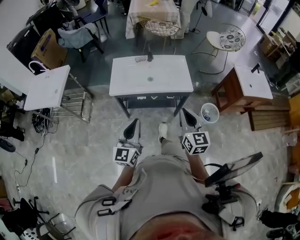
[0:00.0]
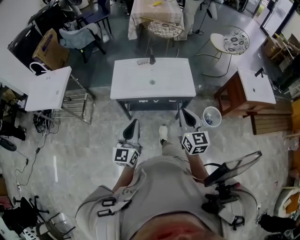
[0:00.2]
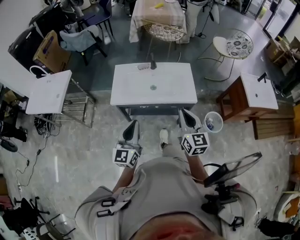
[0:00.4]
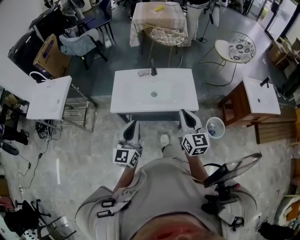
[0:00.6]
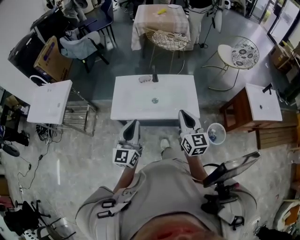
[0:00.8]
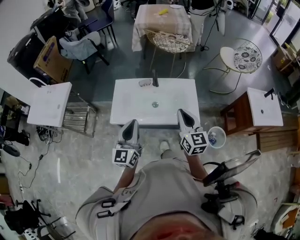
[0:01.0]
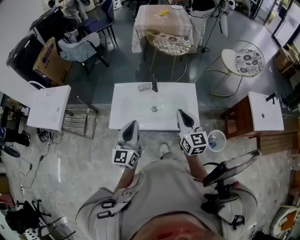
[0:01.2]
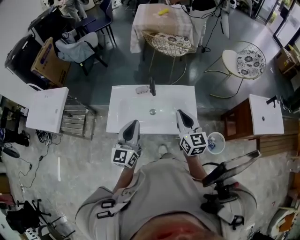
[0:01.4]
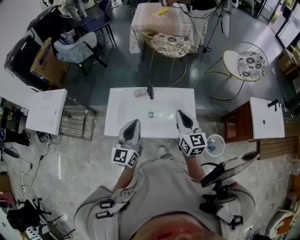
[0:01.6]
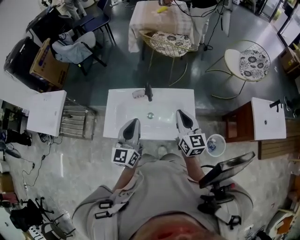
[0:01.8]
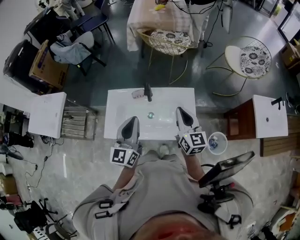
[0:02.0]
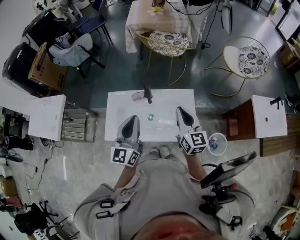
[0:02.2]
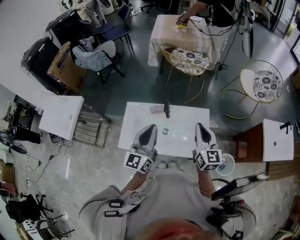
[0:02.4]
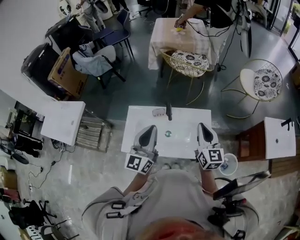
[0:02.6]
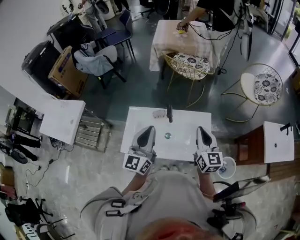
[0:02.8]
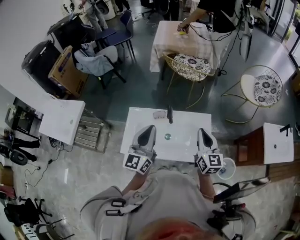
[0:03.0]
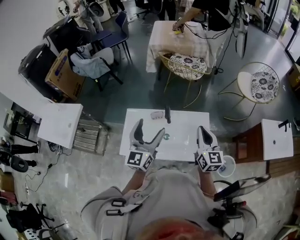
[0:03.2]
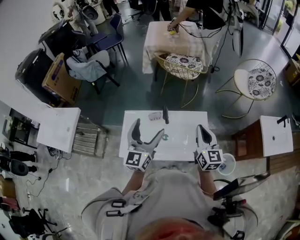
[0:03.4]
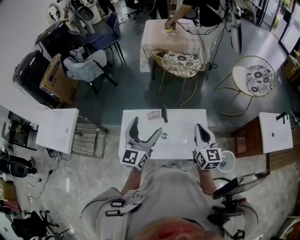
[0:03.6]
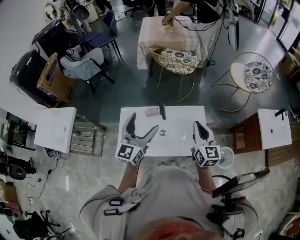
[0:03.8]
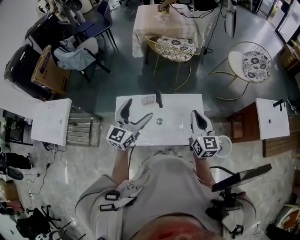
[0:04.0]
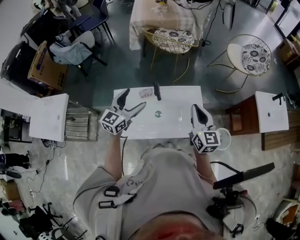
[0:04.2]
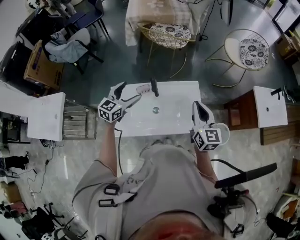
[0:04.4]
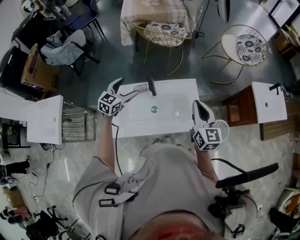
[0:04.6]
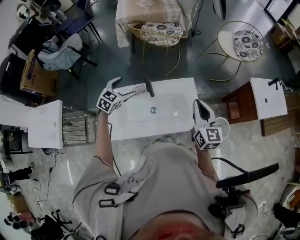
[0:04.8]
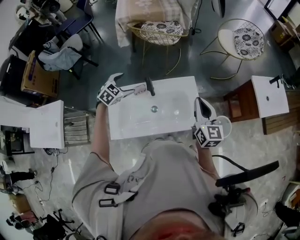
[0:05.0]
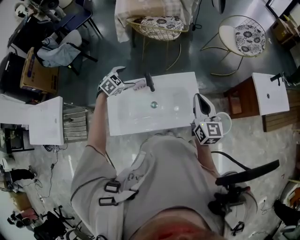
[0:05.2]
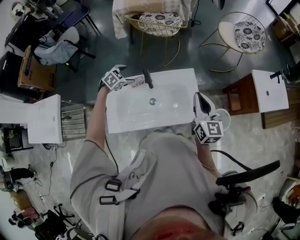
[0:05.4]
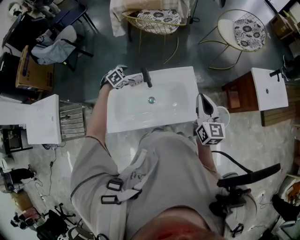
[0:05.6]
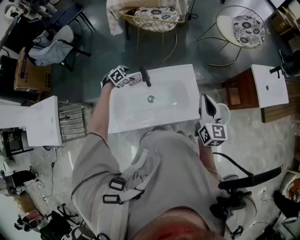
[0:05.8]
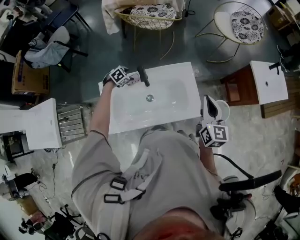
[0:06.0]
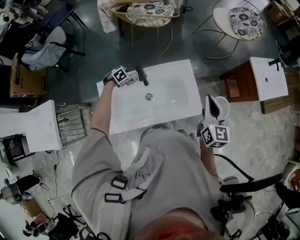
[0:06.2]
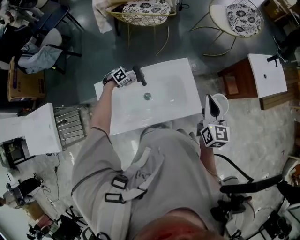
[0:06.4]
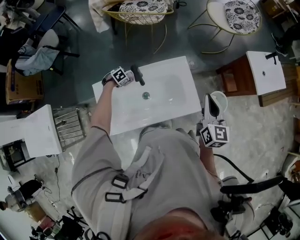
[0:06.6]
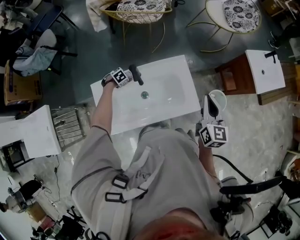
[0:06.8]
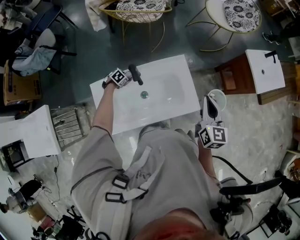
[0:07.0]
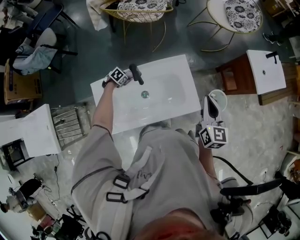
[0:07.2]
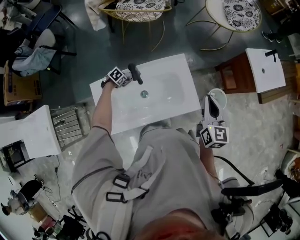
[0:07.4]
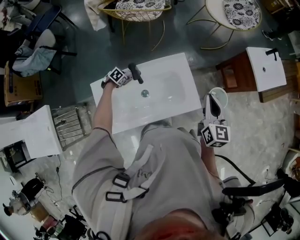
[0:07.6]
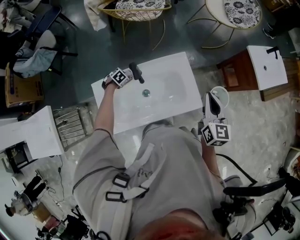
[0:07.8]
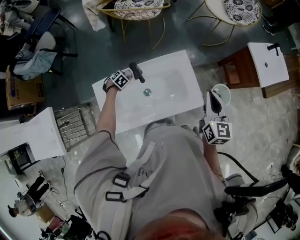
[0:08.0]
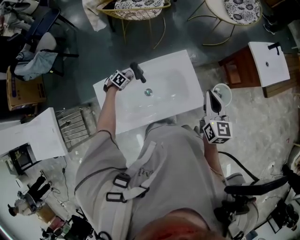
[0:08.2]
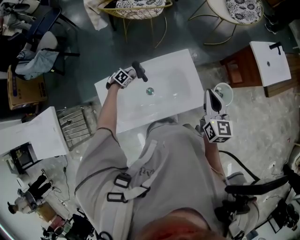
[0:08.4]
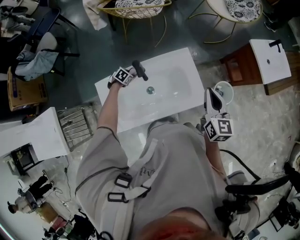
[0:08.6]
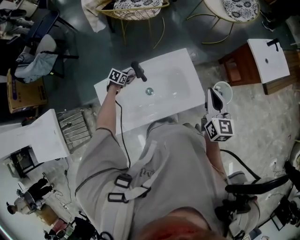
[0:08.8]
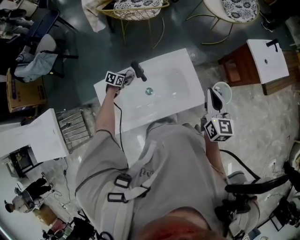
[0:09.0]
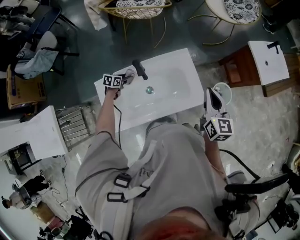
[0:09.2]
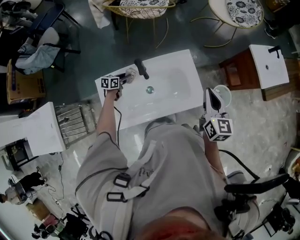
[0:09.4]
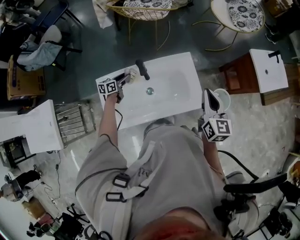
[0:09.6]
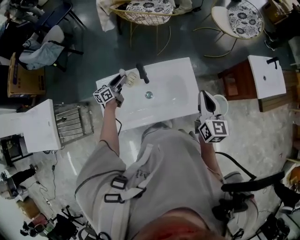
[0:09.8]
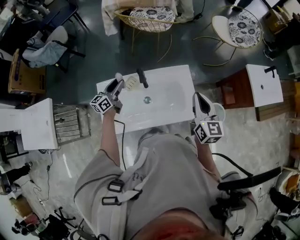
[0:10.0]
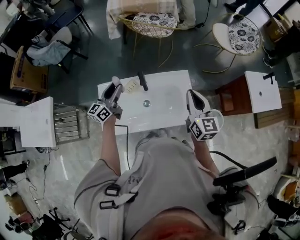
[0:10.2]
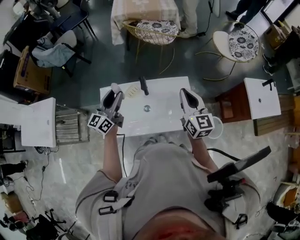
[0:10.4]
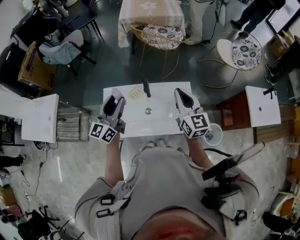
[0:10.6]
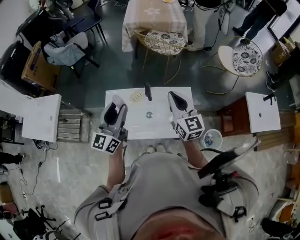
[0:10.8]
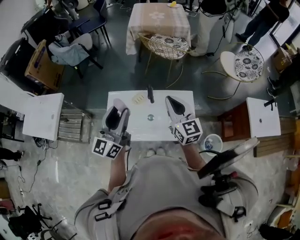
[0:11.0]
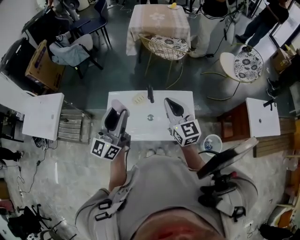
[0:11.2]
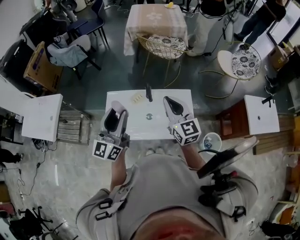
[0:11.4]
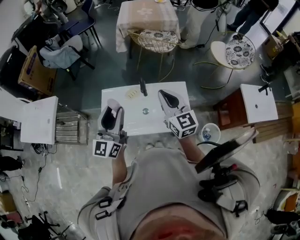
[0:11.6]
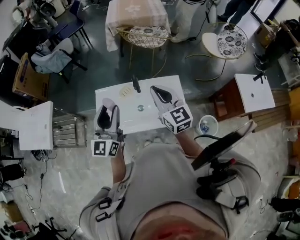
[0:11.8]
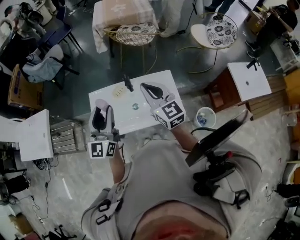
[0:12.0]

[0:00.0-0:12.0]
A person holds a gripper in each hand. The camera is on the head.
0:00.0 to 0:01.6: Both grippers move forward, approximately 35 cm.
0:01.6 to 0:03.0: The right gripper shifts by approximately 5 cm. Meanwhile the left gripper is displaced forward and upward by roughly 10 cm.
0:03.0 to 0:04.4: The left gripper is displaced downward and forward by approximately 20 cm, swivels roughly 40 degrees, and opens up.
0:04.4 to 0:06.0: The right gripper moves to the right, roughly 5 cm. Meanwhile the left gripper heads downward and forward, covering roughly 30 cm, and tilts its fingers about 50 degrees downward.
0:06.0 to 0:07.6: The left gripper shifts approximately 10 cm downward.
0:07.6 to 0:09.0: The left gripper turns by some 30 degrees.
0:09.0 to 0:10.4: The right gripper shifts by approximately 15 cm, and changes its angle by roughly 30 degrees; the left gripper shifts about 40 cm upward, and angles its fingers upward, by approximately 60 degrees.
0:10.4 to 0:12.0: The right gripper shifts approximately 10 cm to the left. Meanwhile the left gripper travels backward and upward by roughly 15 cm, and changes its angle by approximately 20 degrees.

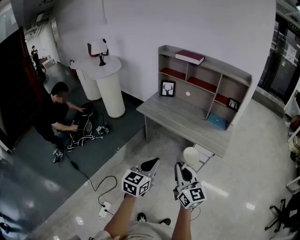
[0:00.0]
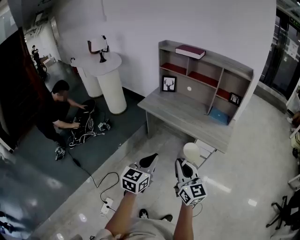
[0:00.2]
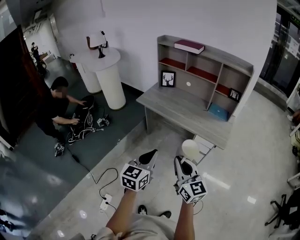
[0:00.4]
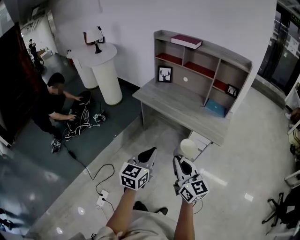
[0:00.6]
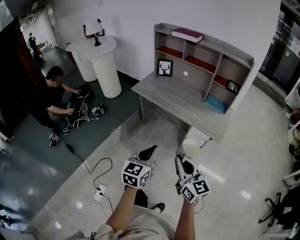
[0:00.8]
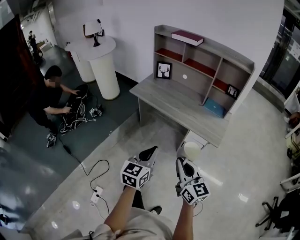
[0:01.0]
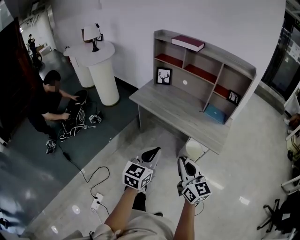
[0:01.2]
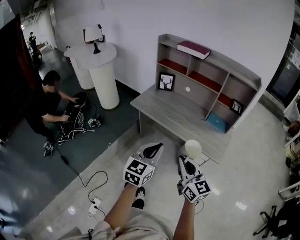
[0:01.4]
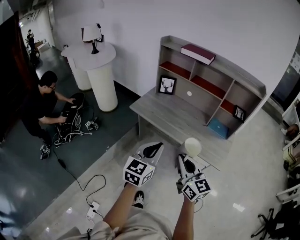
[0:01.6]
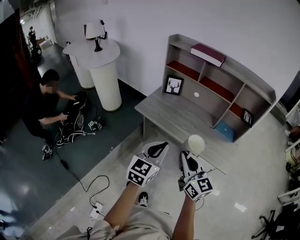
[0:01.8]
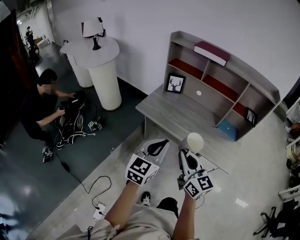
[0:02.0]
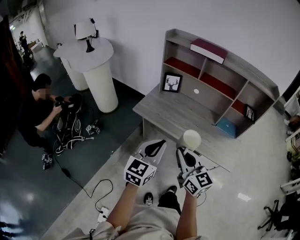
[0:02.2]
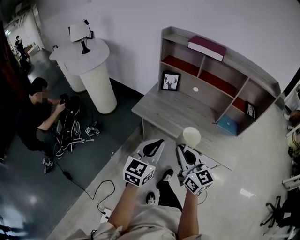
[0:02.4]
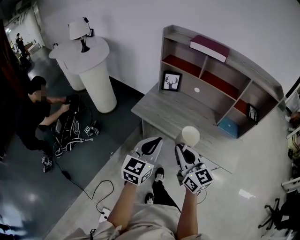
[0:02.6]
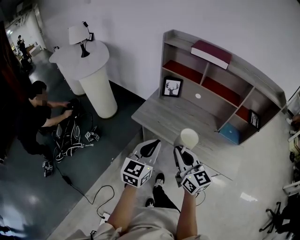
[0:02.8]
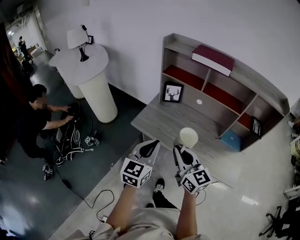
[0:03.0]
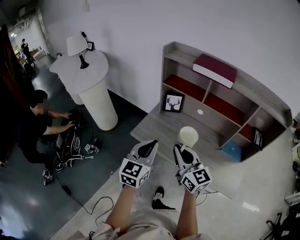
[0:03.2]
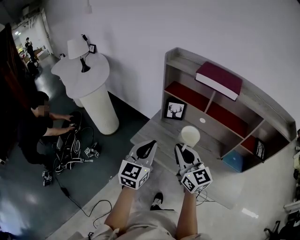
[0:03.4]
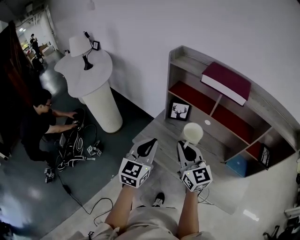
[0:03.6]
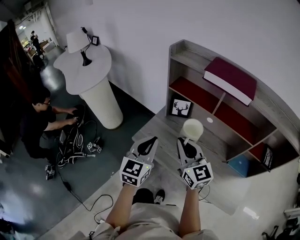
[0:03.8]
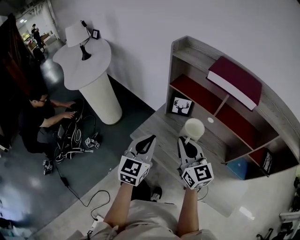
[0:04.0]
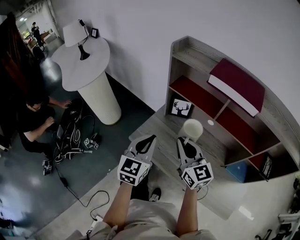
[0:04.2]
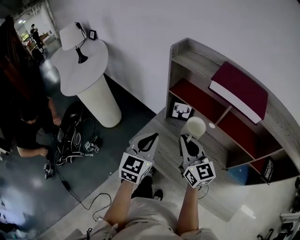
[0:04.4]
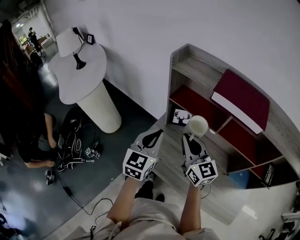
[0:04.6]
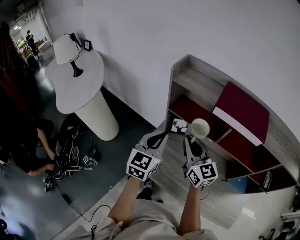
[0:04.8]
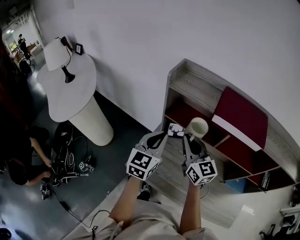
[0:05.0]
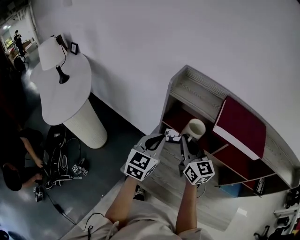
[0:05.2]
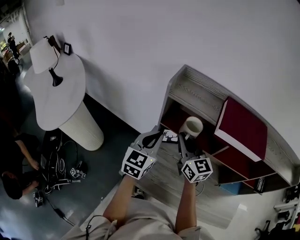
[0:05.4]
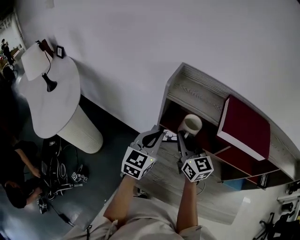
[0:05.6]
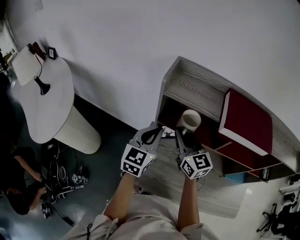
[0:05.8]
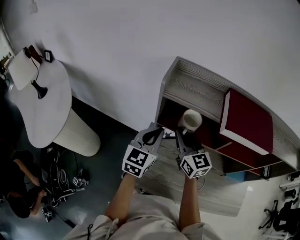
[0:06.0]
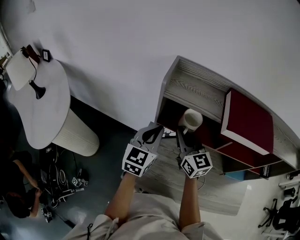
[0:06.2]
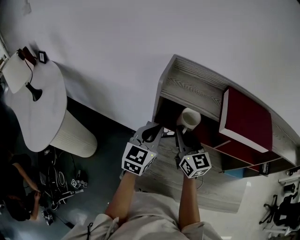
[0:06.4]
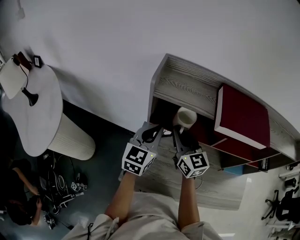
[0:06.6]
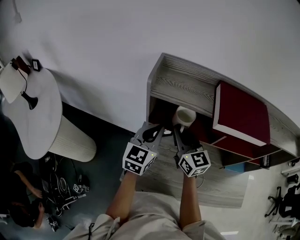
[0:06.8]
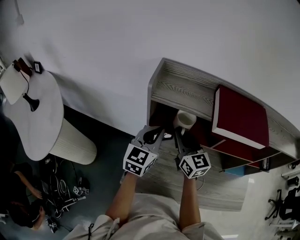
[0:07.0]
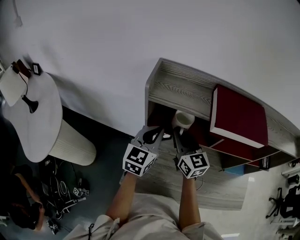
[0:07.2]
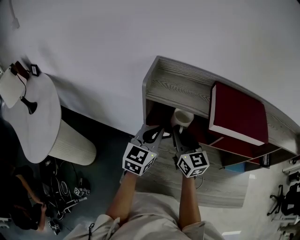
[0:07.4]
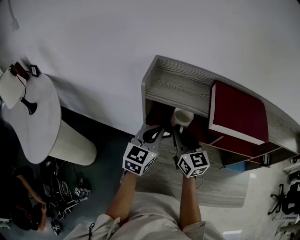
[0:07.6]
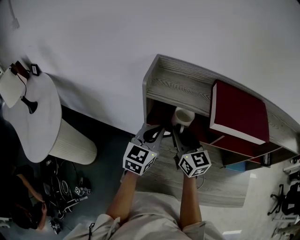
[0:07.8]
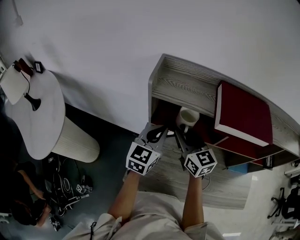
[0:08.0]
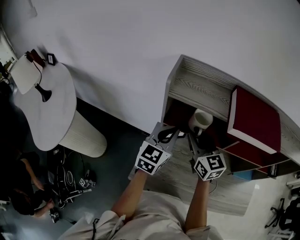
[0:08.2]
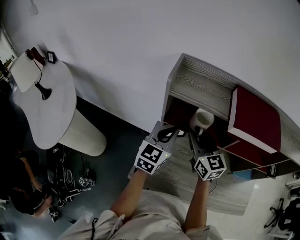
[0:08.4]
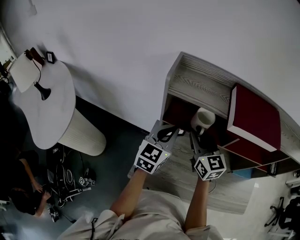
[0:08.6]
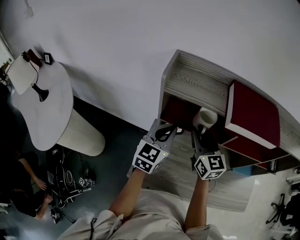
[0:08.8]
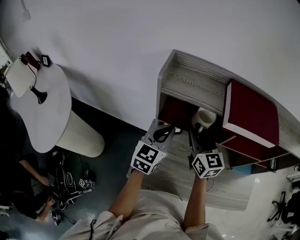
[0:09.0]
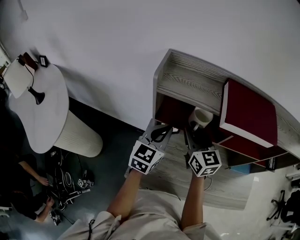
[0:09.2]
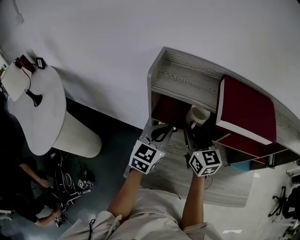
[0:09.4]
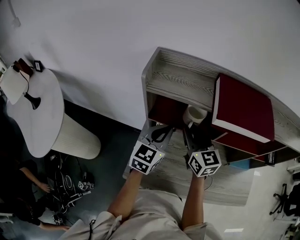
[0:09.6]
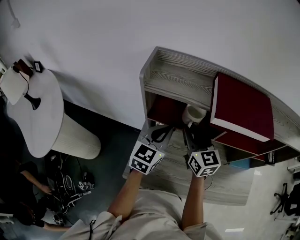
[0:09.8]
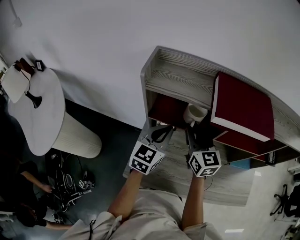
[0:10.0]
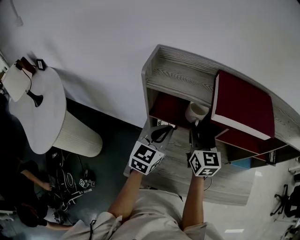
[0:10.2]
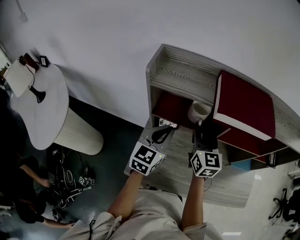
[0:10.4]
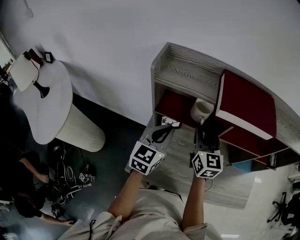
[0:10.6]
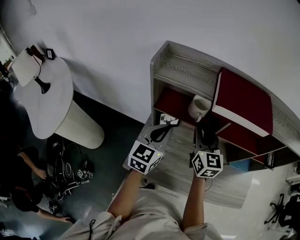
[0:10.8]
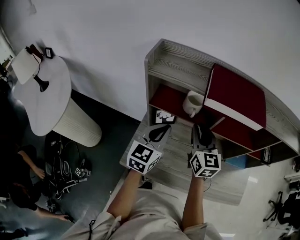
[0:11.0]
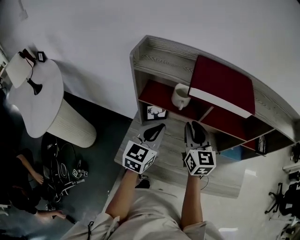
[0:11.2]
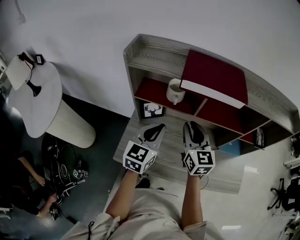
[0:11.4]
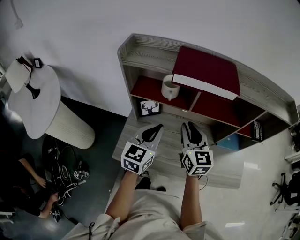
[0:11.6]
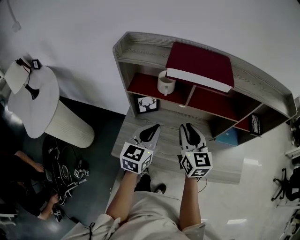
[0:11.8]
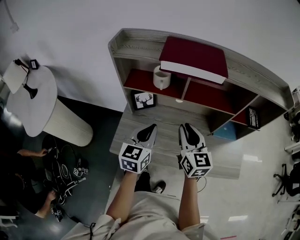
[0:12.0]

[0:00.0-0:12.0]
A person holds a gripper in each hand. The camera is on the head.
0:00.0 to 0:01.6: The grippers both shift forward by roughly 20 cm.
0:01.6 to 0:03.0: Both grippers travel together forward, some 25 cm.
0:03.0 to 0:04.4: The two grippers go some 25 cm forward.
0:04.4 to 0:06.0: Both grippers move forward, approximately 20 cm. The left gripper swivels some 20 degrees.
0:06.0 to 0:09.0: The grippers move only a little.
0:09.0 to 0:10.4: The right gripper moves to the right, approximately 5 cm.
0:10.4 to 0:12.0: The two grippers go about 20 cm backward and to the right.
